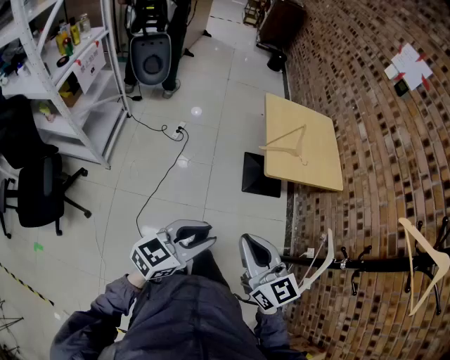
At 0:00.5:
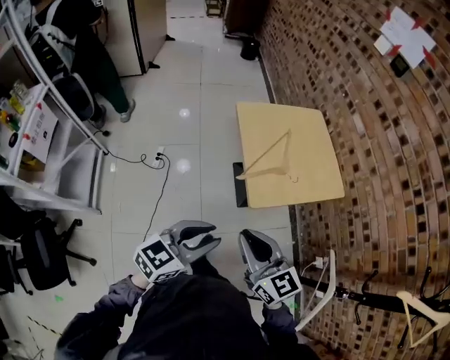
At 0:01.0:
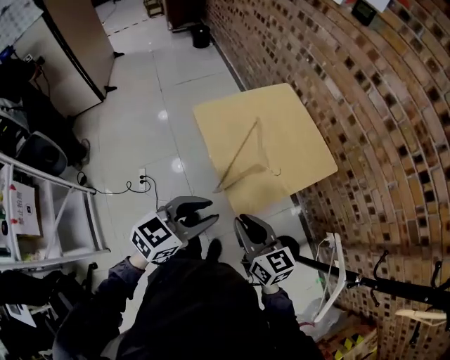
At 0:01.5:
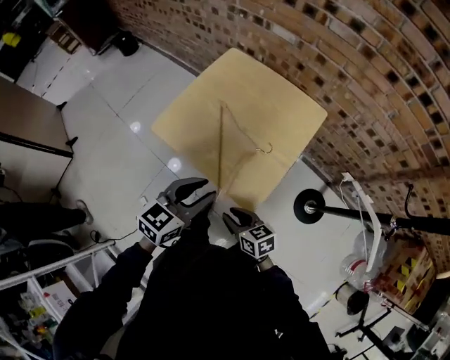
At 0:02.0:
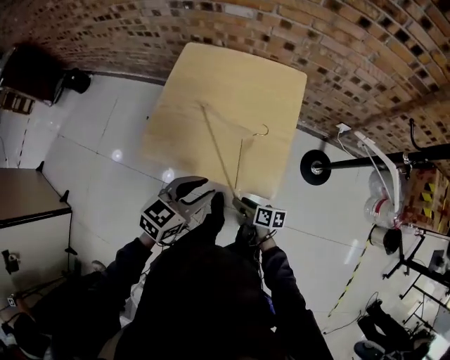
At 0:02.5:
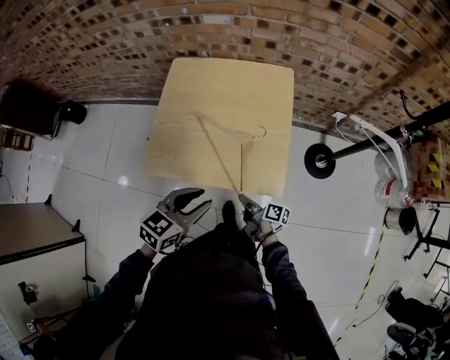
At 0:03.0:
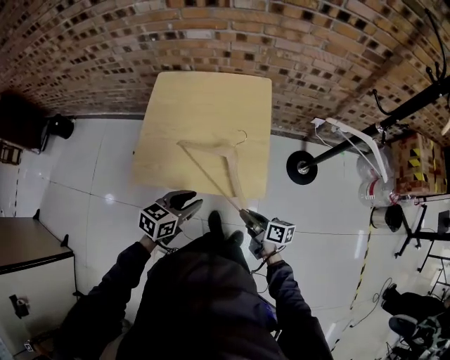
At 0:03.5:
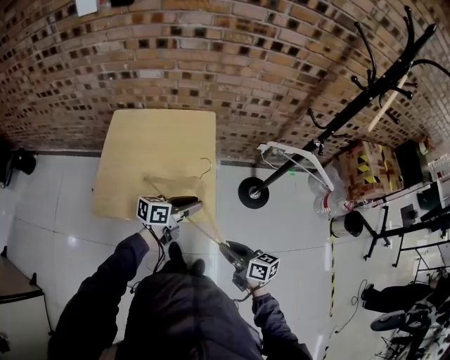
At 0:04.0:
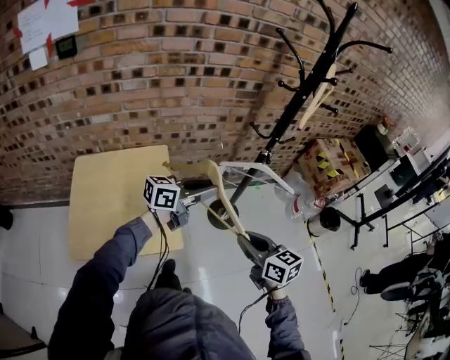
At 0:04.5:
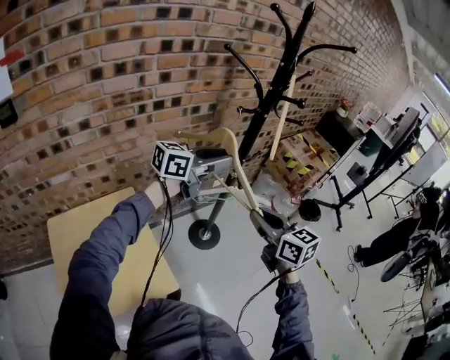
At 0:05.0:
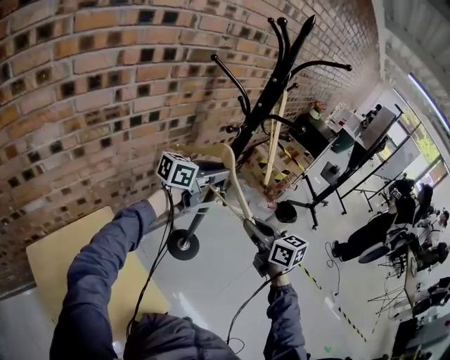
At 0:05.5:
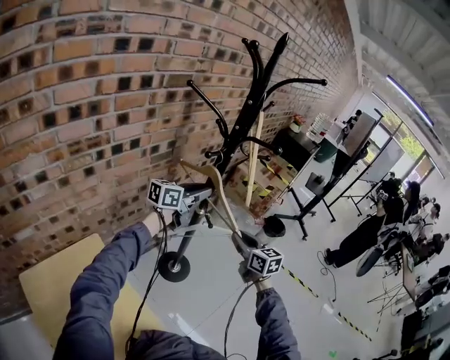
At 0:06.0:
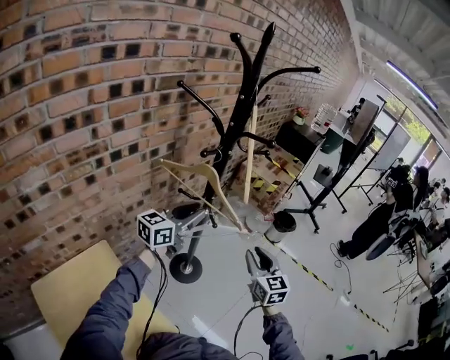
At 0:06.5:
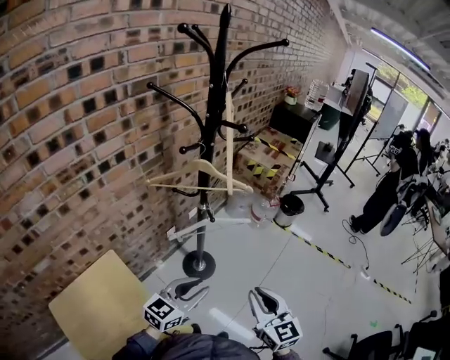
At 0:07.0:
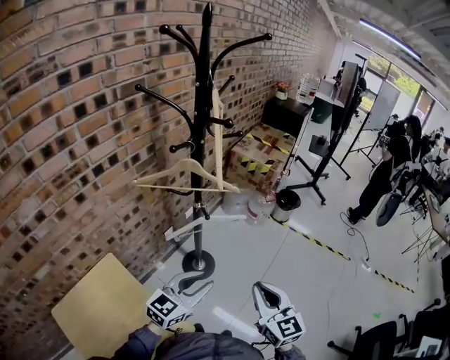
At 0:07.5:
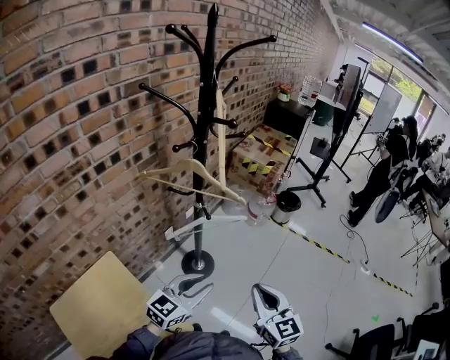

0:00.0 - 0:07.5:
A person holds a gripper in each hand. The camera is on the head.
0:00.0 - 0:02.0: The pair of grippers is taken approximately 50 cm. The left gripper swivels roughly 70 degrees; the right gripper rotates some 100 degrees, and opens.
0:02.0 - 0:04.0: The left gripper changes place by about 40 cm, and tilts its fingers about 30 degrees upward. The right gripper is displaced upward by roughly 35 cm, turns by approximately 50 degrees, and closes.
0:04.0 - 0:05.5: The left gripper ends up approximately 35 cm from where it was, and rotates about 20 degrees. The right gripper goes upward and returns, approximately 15 cm each way, and rotates approximately 40 degrees.
0:05.5 - 0:07.5: The grippers both shift backward and to the right by some 30 cm. The left gripper swivels roughly 30 degrees.

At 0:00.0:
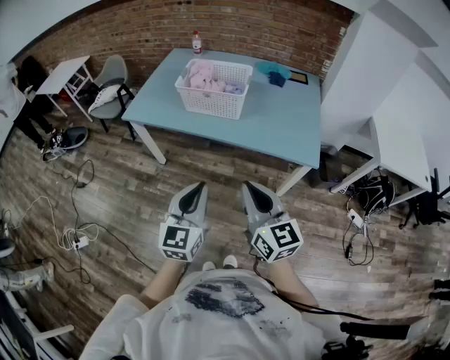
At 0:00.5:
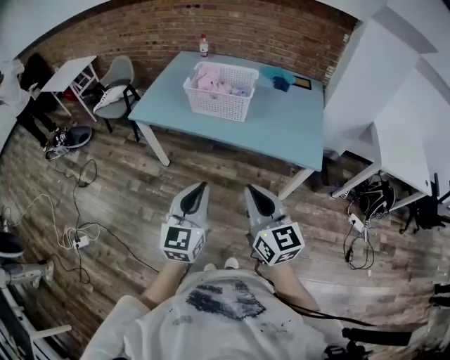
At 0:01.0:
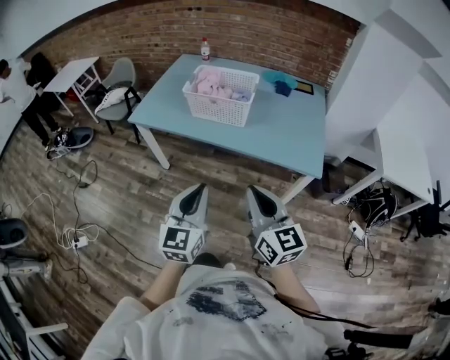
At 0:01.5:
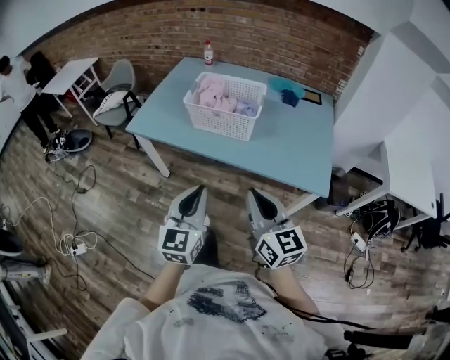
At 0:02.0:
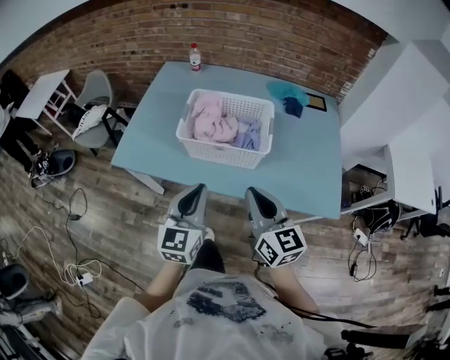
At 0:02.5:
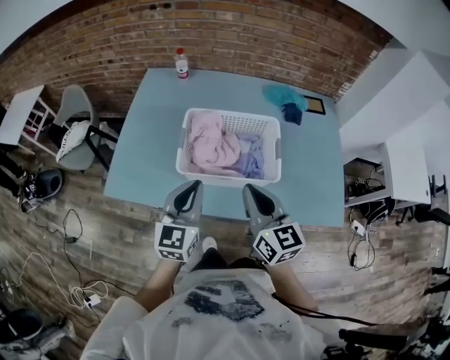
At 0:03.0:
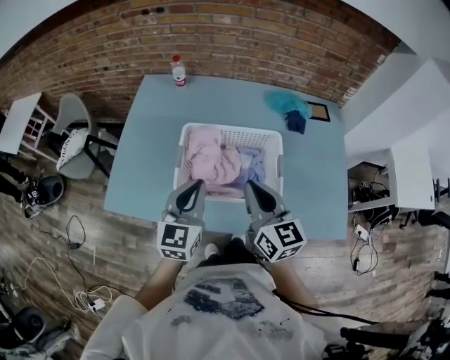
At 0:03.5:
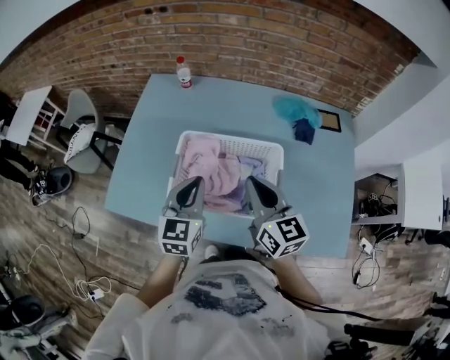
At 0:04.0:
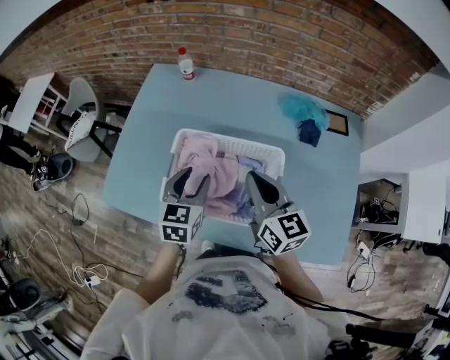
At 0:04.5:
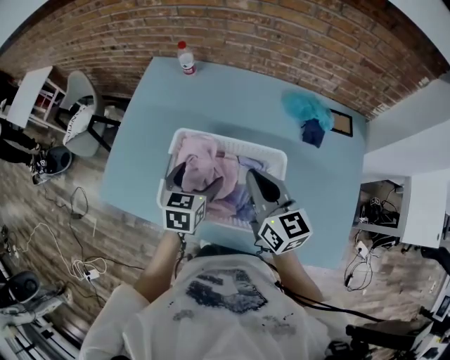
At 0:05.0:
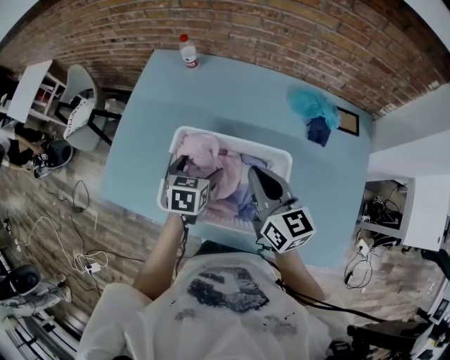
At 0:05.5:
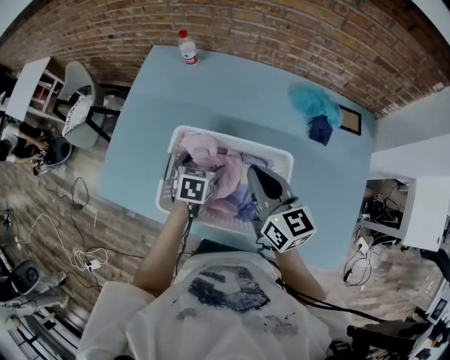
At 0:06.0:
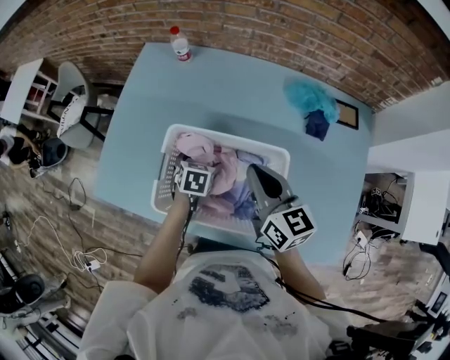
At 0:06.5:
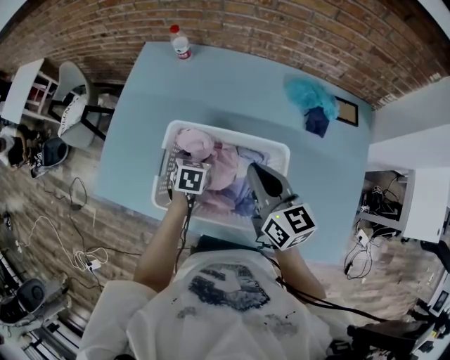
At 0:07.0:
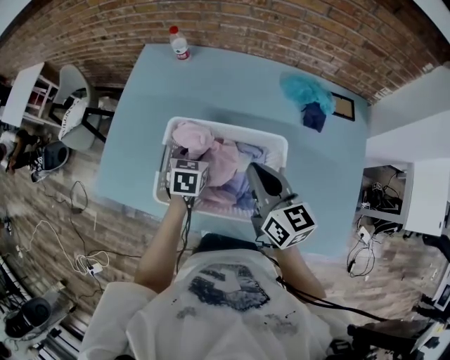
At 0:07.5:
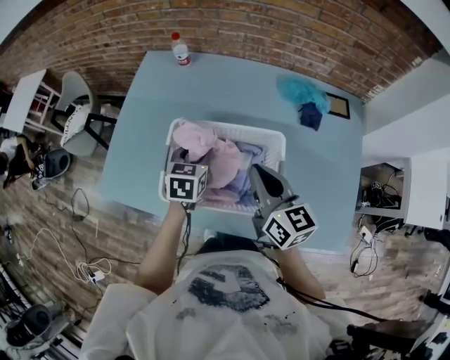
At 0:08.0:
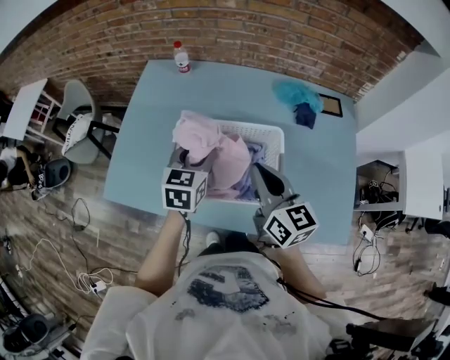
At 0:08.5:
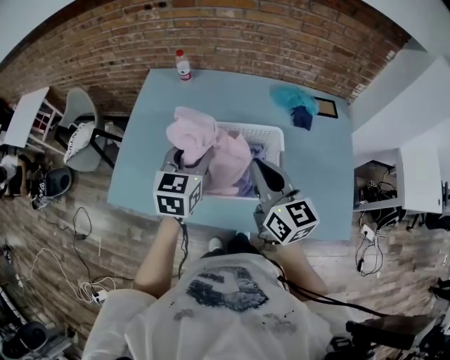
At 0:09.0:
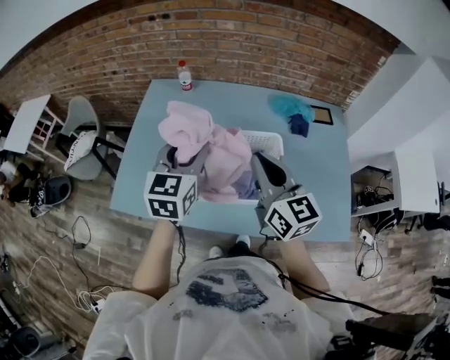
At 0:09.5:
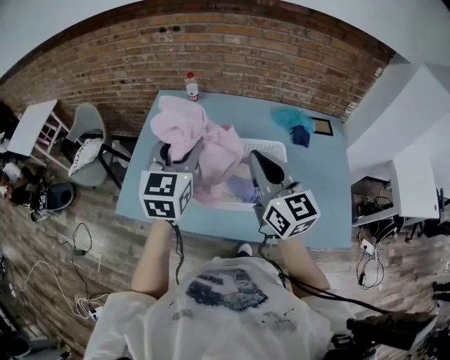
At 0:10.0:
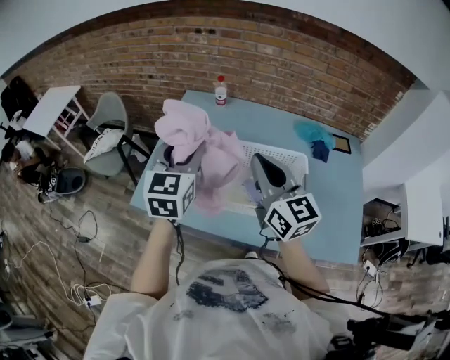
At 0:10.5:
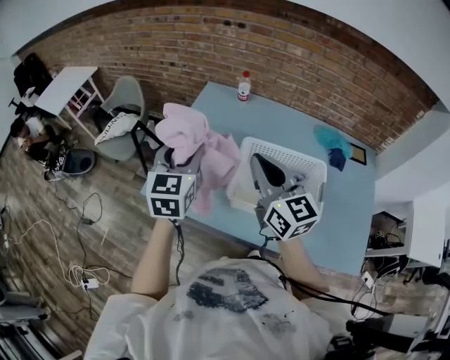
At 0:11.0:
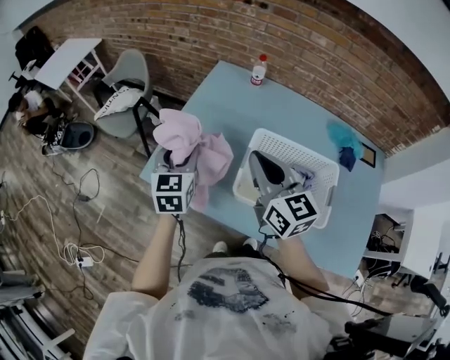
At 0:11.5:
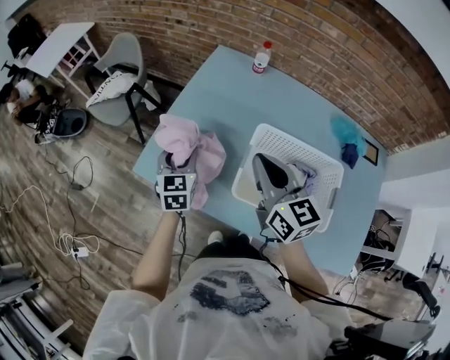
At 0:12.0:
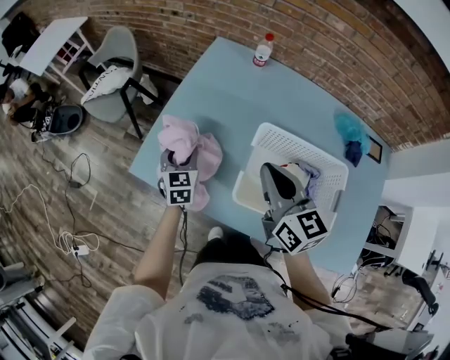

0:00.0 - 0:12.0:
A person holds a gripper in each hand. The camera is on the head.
0:00.0 - 0:02.0: Both grippers travel together forward, approximately 35 cm.
0:02.0 - 0:04.0: Both grippers travel together forward, approximately 30 cm. The left gripper swivels approximately 20 degrees.
0:04.0 - 0:06.0: The right gripper ends up about 5 cm from where it was. Meanwhile the left gripper shifts about 20 cm downward and forward, turns by roughly 30 degrees, and opens its fingers.
0:06.0 - 0:08.0: The right gripper shifts about 10 cm backward and upward, while the left gripper goes about 20 cm upward, rotates roughly 30 degrees, and closes up.
0:08.0 - 0:10.0: The right gripper moves to the left and upward, roughly 20 cm; the left gripper moves upward and to the left, roughly 25 cm, and rotates approximately 20 degrees.
0:10.0 - 0:12.0: The right gripper travels downward, forward and to the left by roughly 15 cm; the left gripper shifts about 30 cm downward, and swivels roughly 30 degrees.

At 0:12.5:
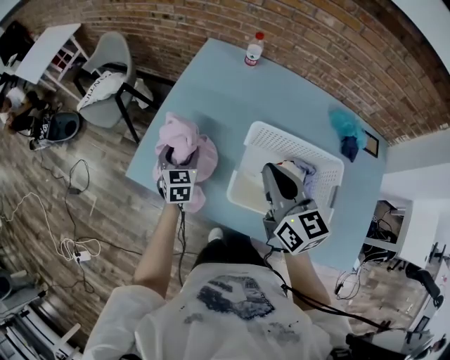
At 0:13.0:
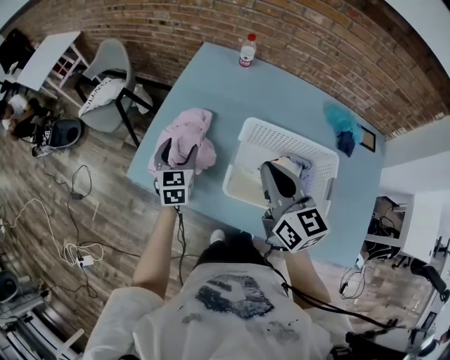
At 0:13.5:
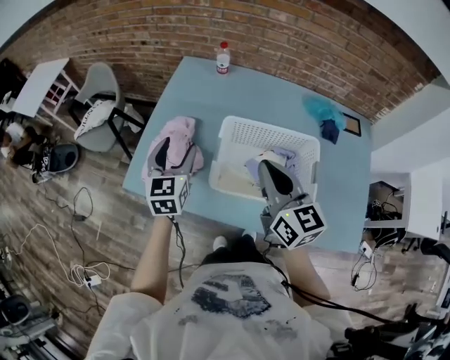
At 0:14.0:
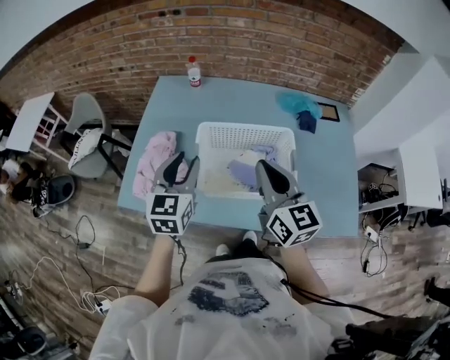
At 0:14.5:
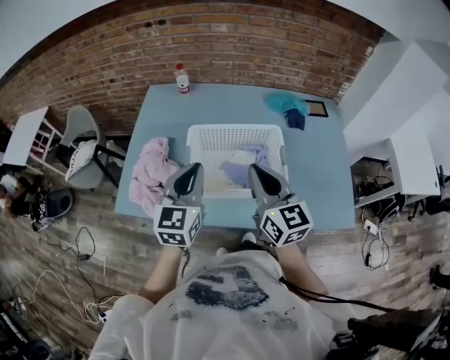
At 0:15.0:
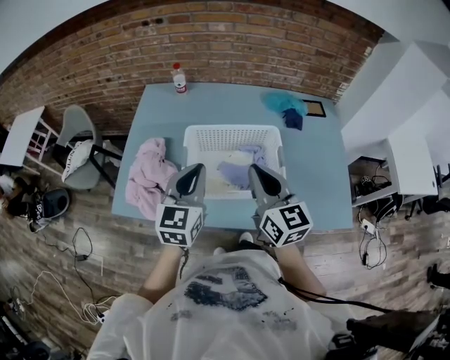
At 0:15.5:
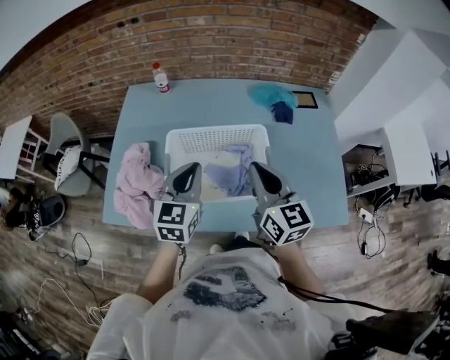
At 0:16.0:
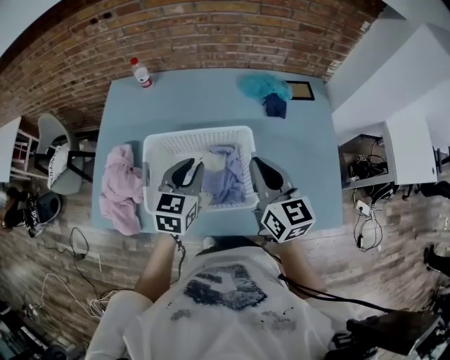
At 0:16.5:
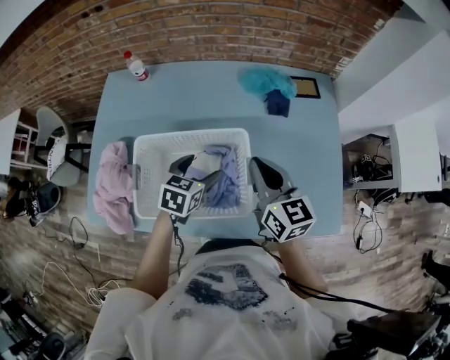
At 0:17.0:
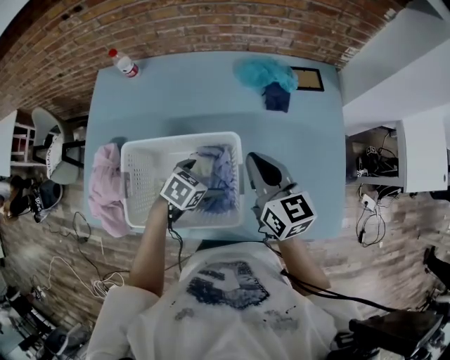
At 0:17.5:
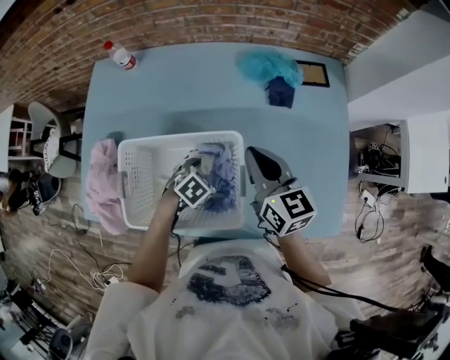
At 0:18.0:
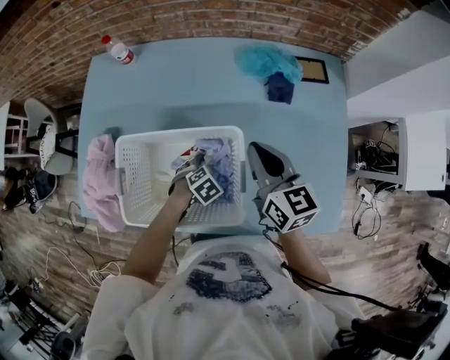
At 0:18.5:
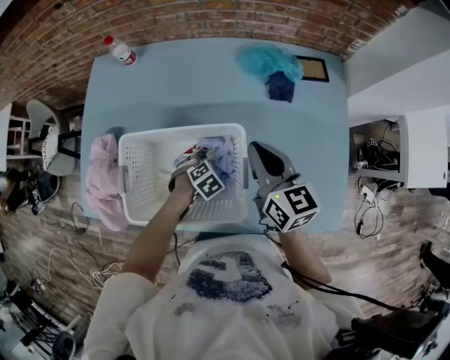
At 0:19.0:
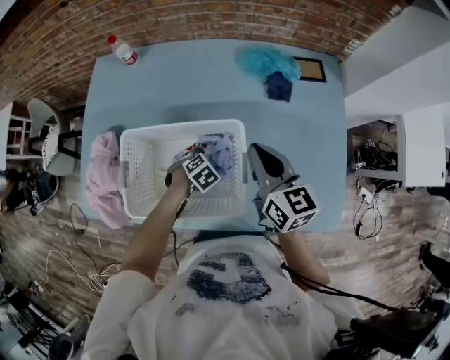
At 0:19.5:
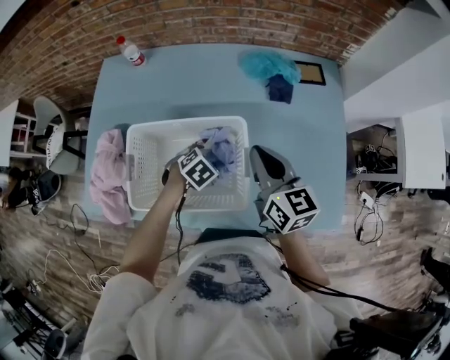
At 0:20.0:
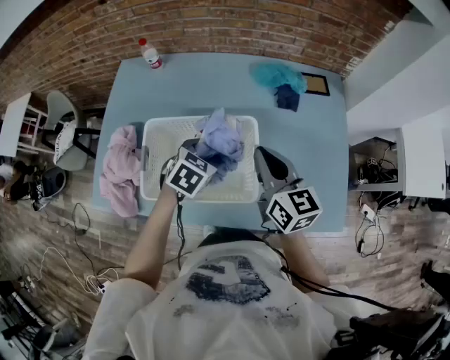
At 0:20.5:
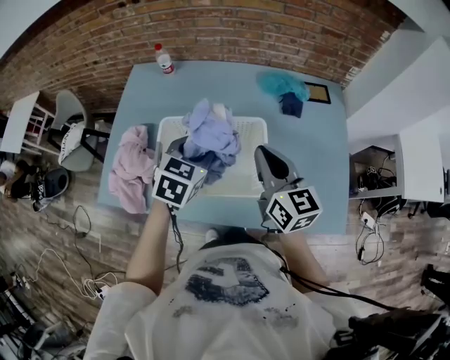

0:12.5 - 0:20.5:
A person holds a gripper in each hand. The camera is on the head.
0:12.5 - 0:14.5: The right gripper shifts approximately 20 cm backward and to the right, and rotates roughly 20 degrees, while the left gripper moves upward, to the right and backward, about 35 cm, turns by some 40 degrees, and closes.
0:14.5 - 0:16.5: The left gripper heads downward, to the right and forward, covering approximately 30 cm, points its fingers about 30 degrees further downward, and opens. Meanwhile the right gripper heads to the right, forward and downward, covering approximately 20 cm.
0:16.5 - 0:18.5: The left gripper is displaced downward by approximately 20 cm, and angles its fingers downward, by approximately 30 degrees; the right gripper ends up some 5 cm from where it was.
0:18.5 - 0:20.5: The left gripper moves upward, about 35 cm, angles its fingers upward, by about 40 degrees, and closes its fingers. The right gripper ends up roughly 15 cm from where it was.
